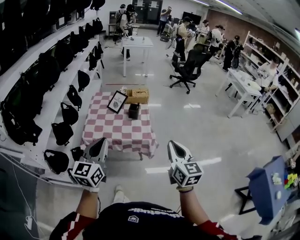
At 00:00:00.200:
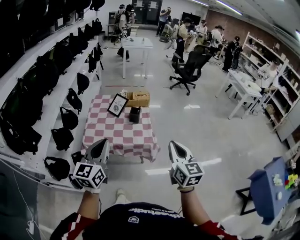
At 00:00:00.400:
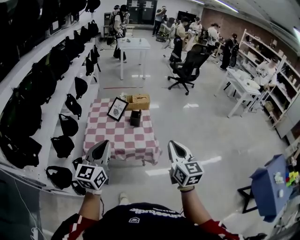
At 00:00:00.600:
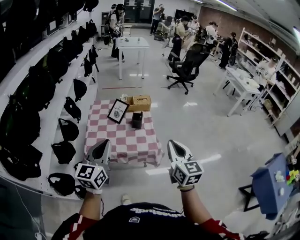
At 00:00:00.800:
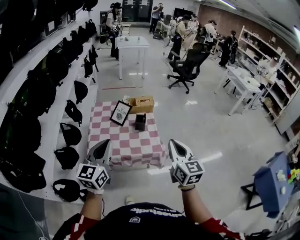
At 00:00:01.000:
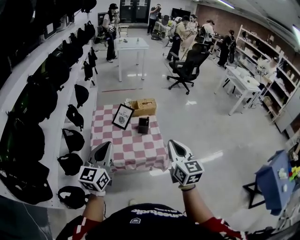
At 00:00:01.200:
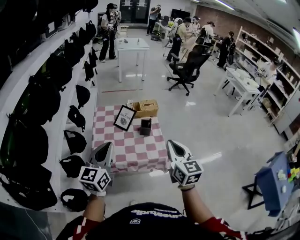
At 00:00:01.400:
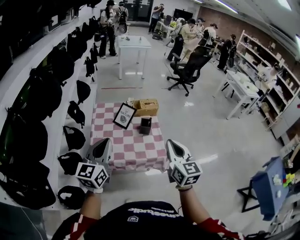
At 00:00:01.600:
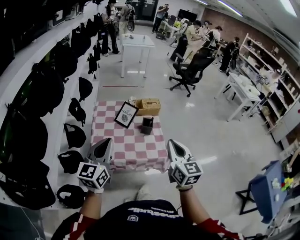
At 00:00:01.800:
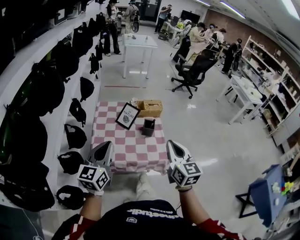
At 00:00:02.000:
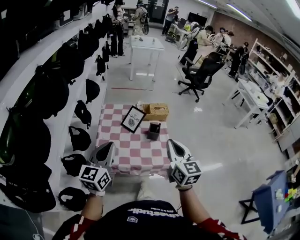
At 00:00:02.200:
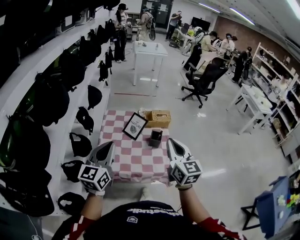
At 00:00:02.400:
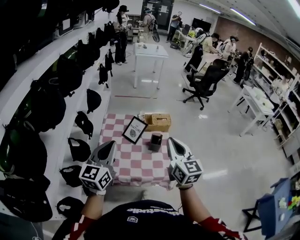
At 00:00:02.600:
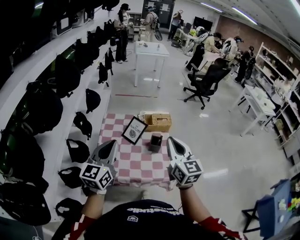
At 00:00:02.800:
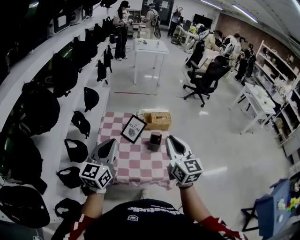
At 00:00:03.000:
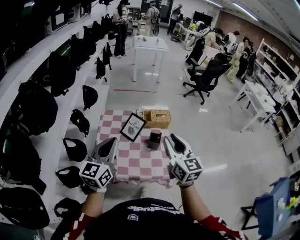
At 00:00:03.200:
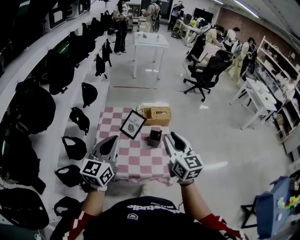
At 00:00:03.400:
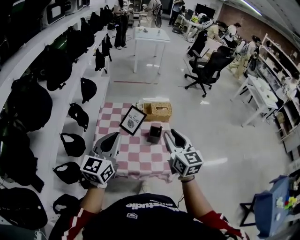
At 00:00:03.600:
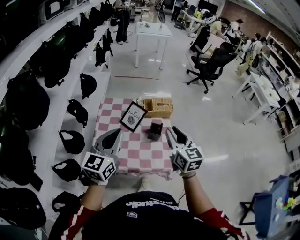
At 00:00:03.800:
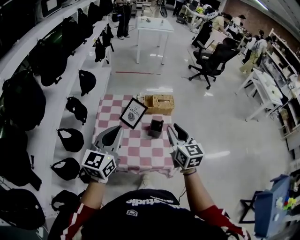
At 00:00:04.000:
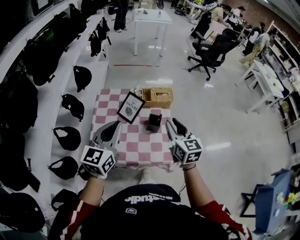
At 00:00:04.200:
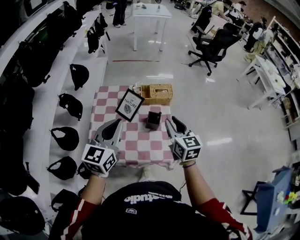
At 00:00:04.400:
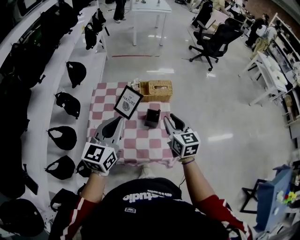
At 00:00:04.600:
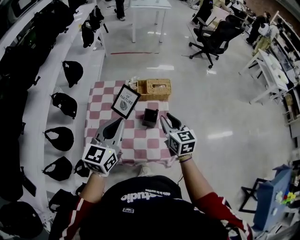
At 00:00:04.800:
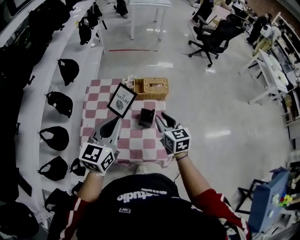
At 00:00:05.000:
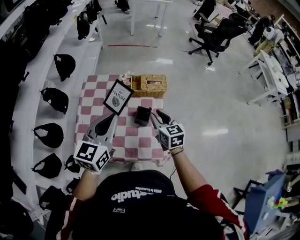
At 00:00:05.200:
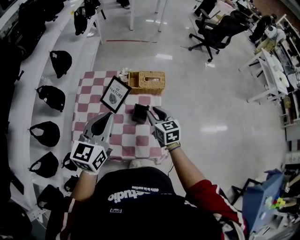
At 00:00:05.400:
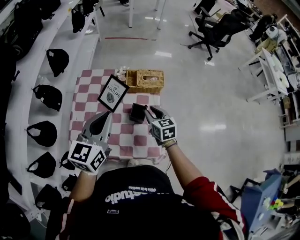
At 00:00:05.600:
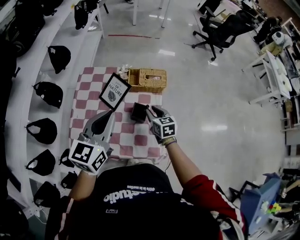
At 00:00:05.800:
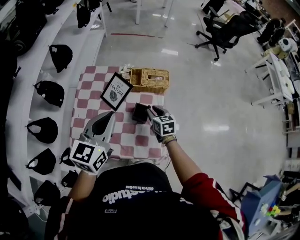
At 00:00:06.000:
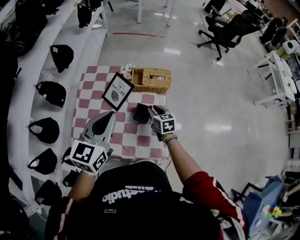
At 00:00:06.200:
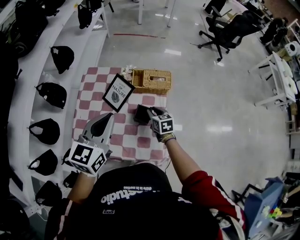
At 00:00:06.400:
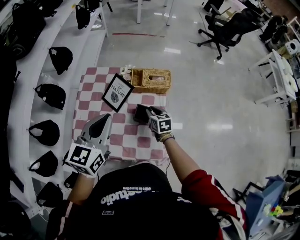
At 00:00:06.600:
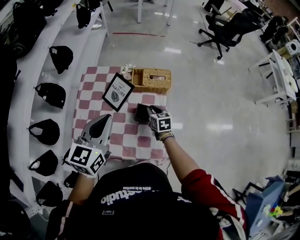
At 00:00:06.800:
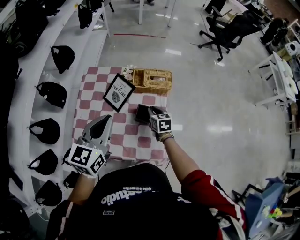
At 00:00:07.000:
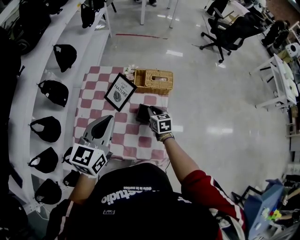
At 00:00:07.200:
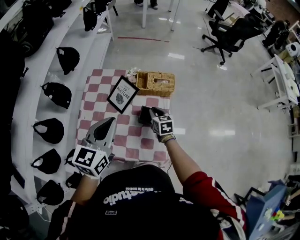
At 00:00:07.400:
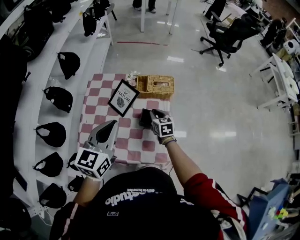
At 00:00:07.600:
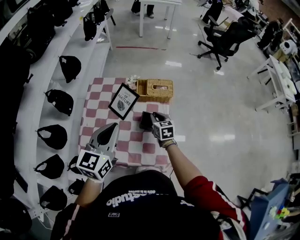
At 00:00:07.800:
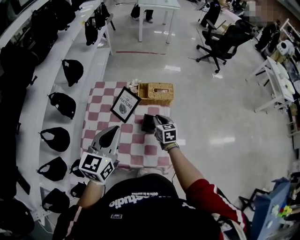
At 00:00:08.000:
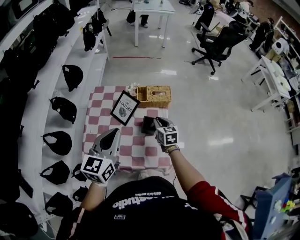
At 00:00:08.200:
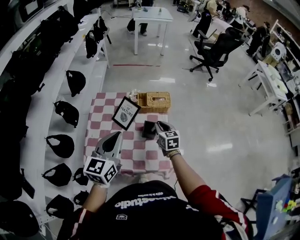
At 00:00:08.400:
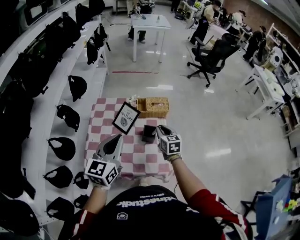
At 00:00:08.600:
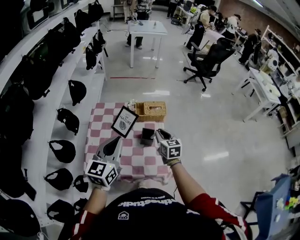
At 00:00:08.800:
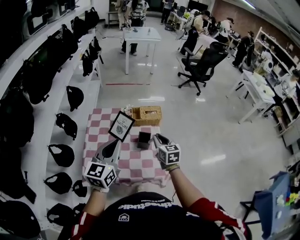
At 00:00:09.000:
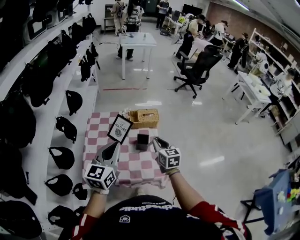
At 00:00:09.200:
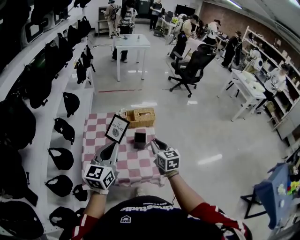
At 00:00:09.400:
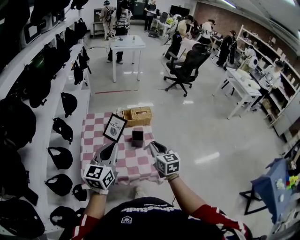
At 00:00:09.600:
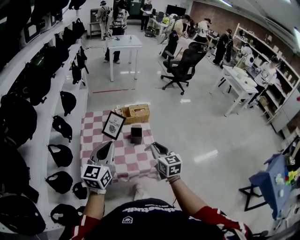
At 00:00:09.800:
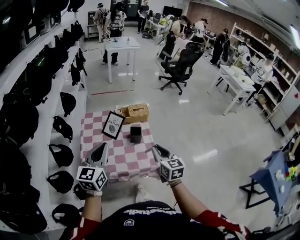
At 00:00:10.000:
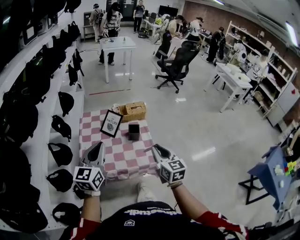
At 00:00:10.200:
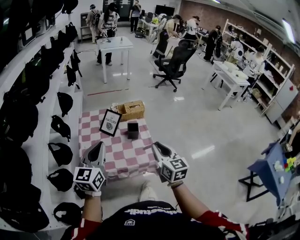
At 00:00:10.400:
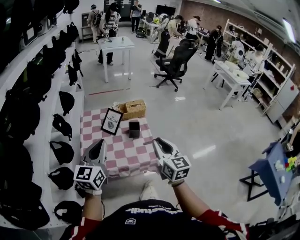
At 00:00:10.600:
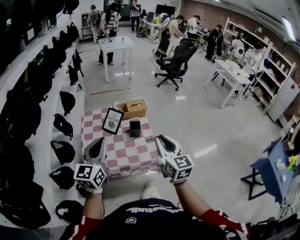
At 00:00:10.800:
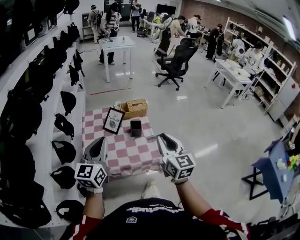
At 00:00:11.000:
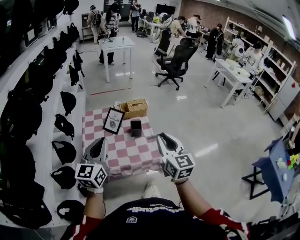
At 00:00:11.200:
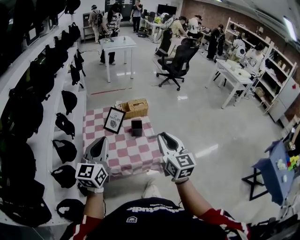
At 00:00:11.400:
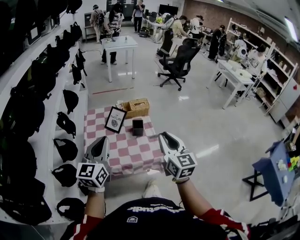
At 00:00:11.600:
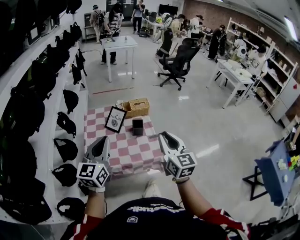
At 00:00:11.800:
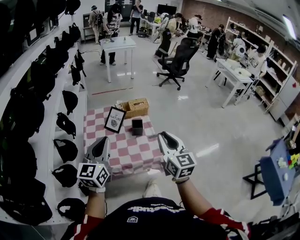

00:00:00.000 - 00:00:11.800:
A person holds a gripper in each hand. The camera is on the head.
00:00:00.000 - 00:00:01.400: The left gripper moves forward and to the left, roughly 25 cm. Meanwhile the right gripper is displaced to the left and forward by roughly 25 cm.
00:00:01.400 - 00:00:03.000: Both grippers travel together forward, some 15 cm. The right gripper opens its fingers.
00:00:03.000 - 00:00:04.400: The left gripper goes approximately 15 cm forward, to the right and downward; the right gripper travels downward, forward and to the right by approximately 20 cm.
00:00:04.400 - 00:00:06.000: The left gripper moves forward and downward, roughly 10 cm. The right gripper heads downward and forward, covering some 25 cm, and swivels about 20 degrees.
00:00:06.000 - 00:00:07.400: The grippers make only small movements.
00:00:07.400 - 00:00:08.800: The left gripper is displaced backward and upward by some 10 cm, while the right gripper goes roughly 20 cm upward and backward.
00:00:08.800 - 00:00:10.400: The left gripper moves backward, approximately 15 cm, while the right gripper goes about 30 cm backward and upward.
00:00:10.400 - 00:00:11.800: The grippers stay close to where they were, moving slightly.

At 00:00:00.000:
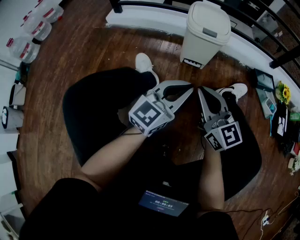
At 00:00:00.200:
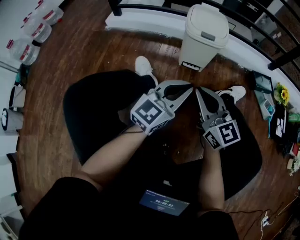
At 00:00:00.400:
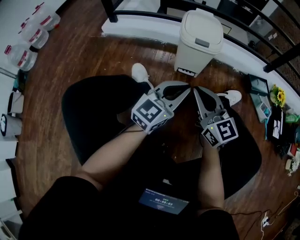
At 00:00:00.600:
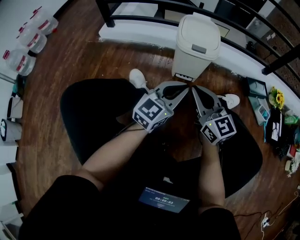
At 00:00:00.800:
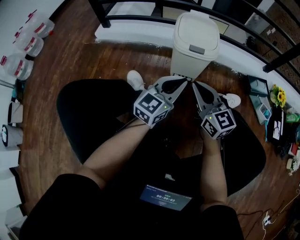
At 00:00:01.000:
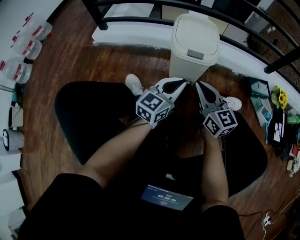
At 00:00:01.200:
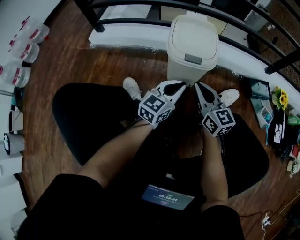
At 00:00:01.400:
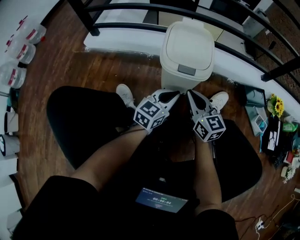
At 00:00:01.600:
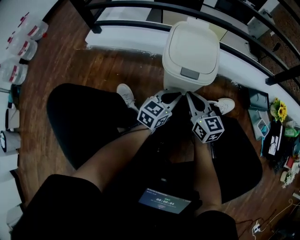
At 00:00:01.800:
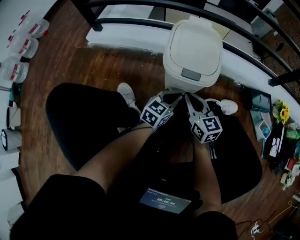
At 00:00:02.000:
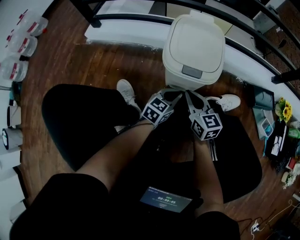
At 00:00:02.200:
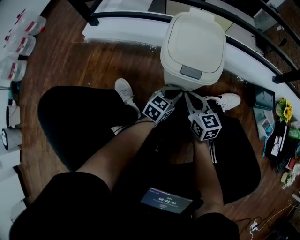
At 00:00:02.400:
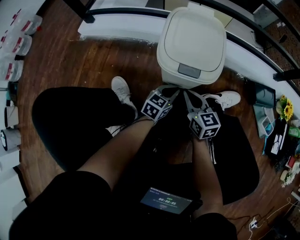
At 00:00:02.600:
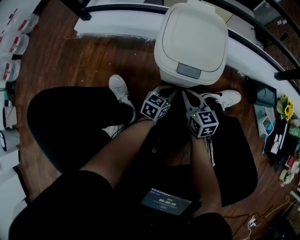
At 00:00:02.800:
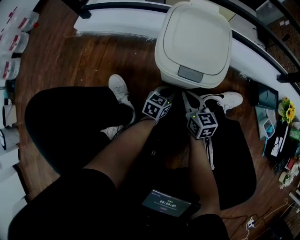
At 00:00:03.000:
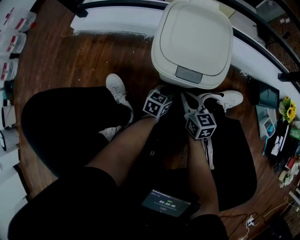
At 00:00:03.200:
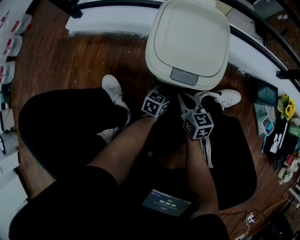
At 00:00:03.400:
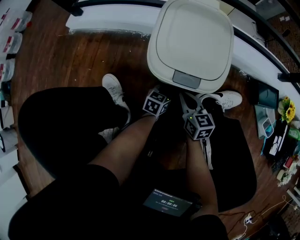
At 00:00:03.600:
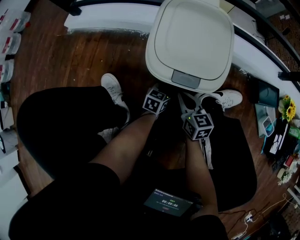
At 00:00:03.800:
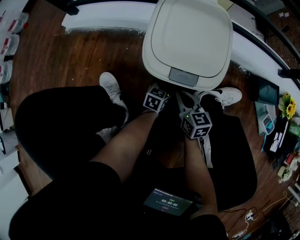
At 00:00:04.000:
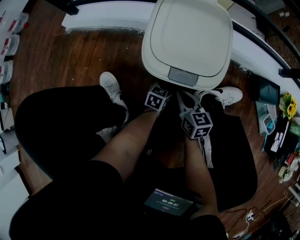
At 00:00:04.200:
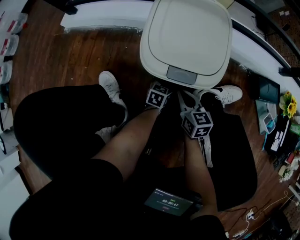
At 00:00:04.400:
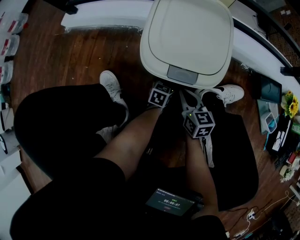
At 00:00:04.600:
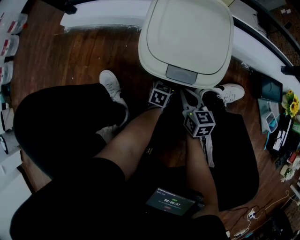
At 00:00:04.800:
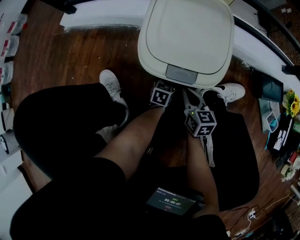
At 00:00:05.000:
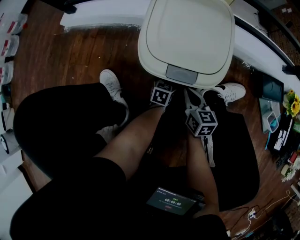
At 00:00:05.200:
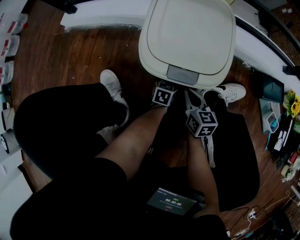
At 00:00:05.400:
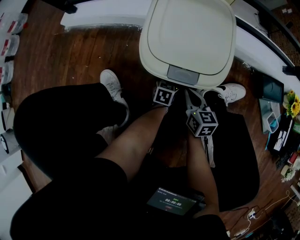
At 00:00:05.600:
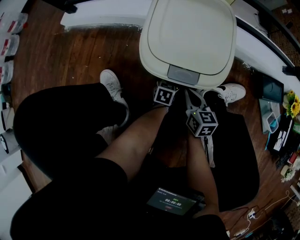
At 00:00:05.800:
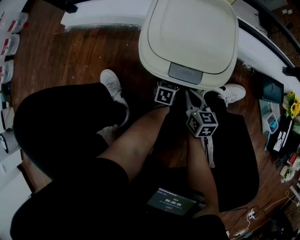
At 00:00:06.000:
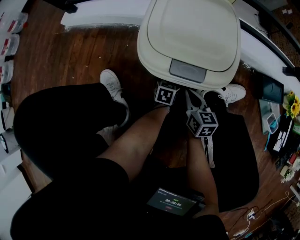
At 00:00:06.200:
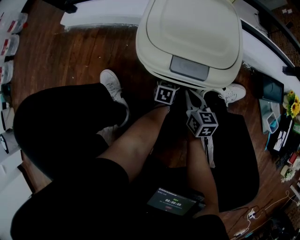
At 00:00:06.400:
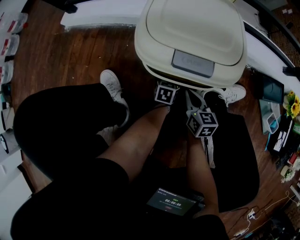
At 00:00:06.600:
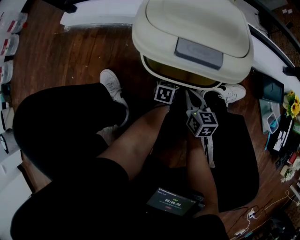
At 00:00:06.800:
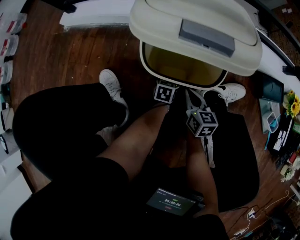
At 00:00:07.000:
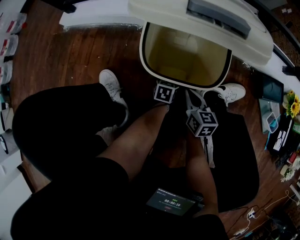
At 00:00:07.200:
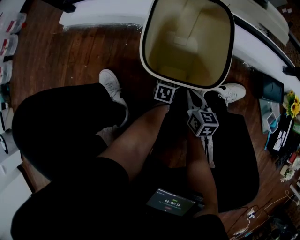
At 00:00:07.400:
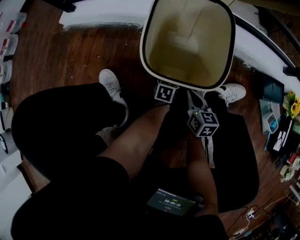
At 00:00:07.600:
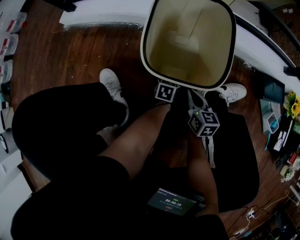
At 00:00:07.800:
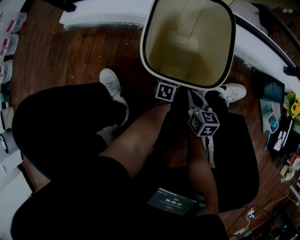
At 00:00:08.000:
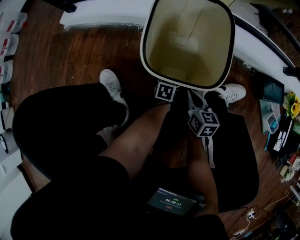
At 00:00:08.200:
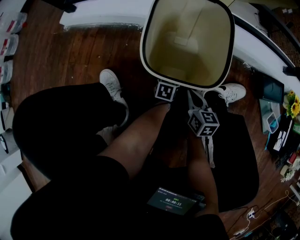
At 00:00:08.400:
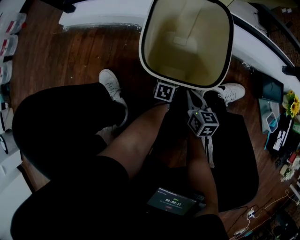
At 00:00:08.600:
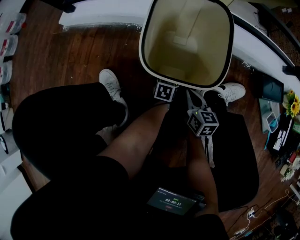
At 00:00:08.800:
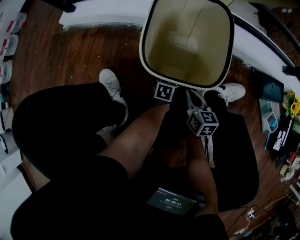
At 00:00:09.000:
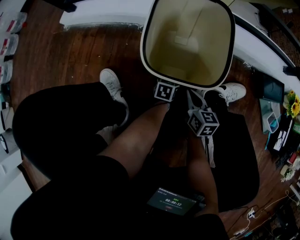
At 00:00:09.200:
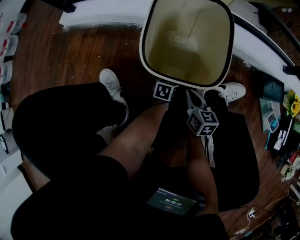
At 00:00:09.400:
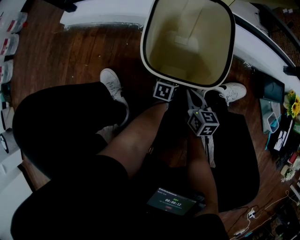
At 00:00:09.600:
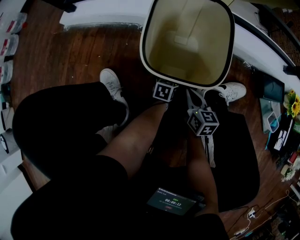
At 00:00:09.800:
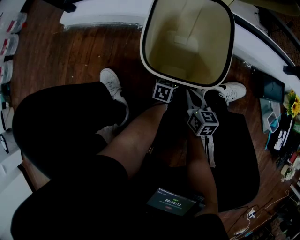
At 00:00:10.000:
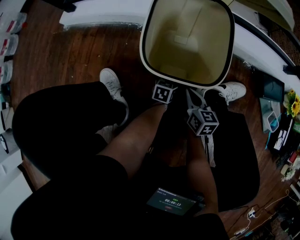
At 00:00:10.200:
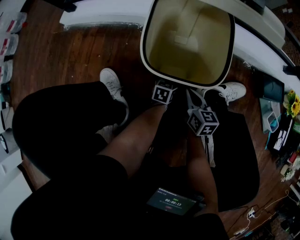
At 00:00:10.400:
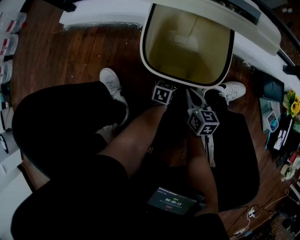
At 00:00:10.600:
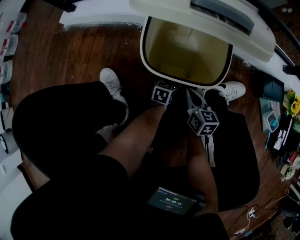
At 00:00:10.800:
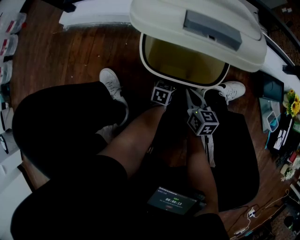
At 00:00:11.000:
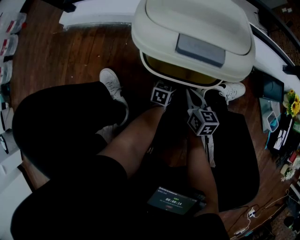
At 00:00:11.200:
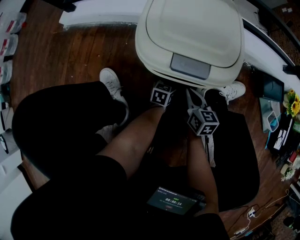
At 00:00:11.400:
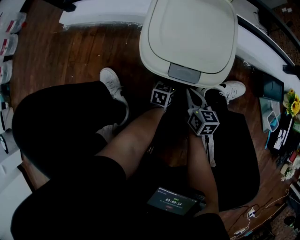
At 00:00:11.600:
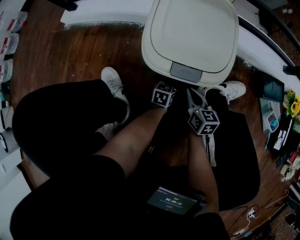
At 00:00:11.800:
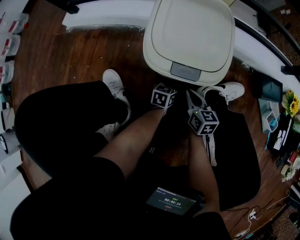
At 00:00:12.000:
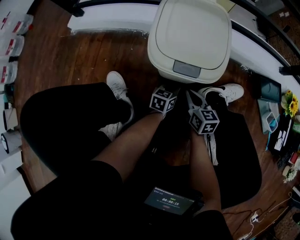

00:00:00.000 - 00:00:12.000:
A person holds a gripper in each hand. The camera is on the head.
00:00:00.000 - 00:00:01.600: The grippers both shift forward and downward by about 35 cm. The left gripper rotates about 20 degrees.
00:00:01.600 - 00:00:03.000: Both grippers move downward, roughly 20 cm.
00:00:03.000 - 00:00:04.400: The left gripper moves downward, about 10 cm.
00:00:04.400 - 00:00:07.600: The grippers move only a little.
00:00:07.600 - 00:00:09.000: Both grippers stay about where they are.
00:00:09.000 - 00:00:10.400: The grippers make only small movements.
00:00:10.400 - 00:00:12.000: The left gripper heads upward, covering approximately 5 cm.
